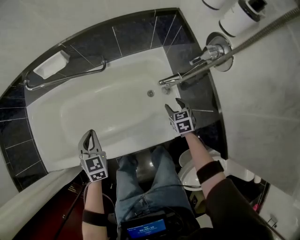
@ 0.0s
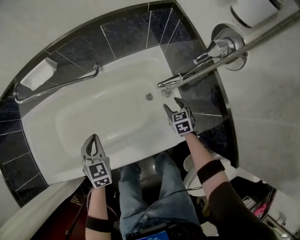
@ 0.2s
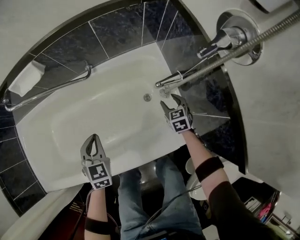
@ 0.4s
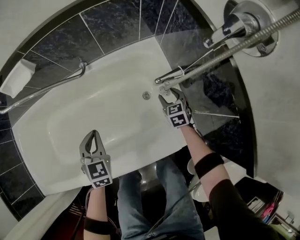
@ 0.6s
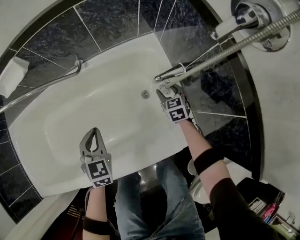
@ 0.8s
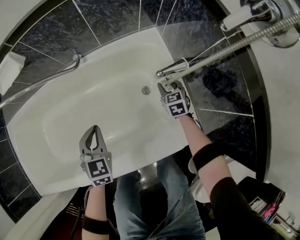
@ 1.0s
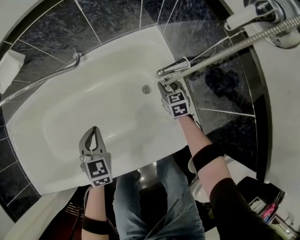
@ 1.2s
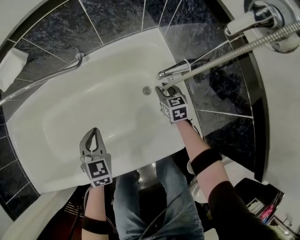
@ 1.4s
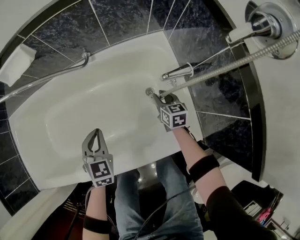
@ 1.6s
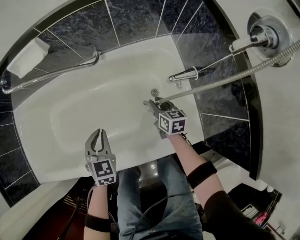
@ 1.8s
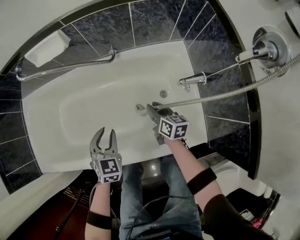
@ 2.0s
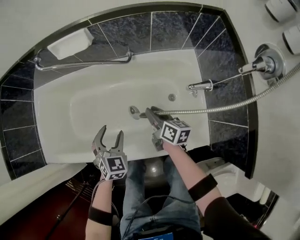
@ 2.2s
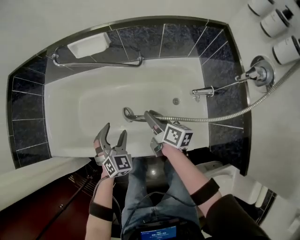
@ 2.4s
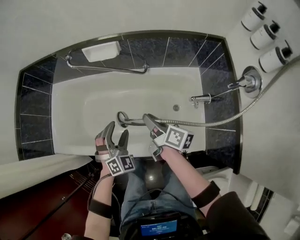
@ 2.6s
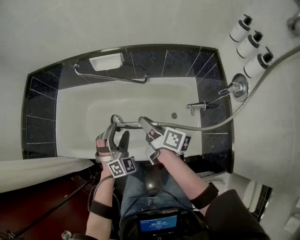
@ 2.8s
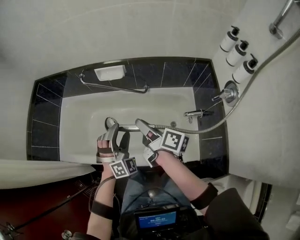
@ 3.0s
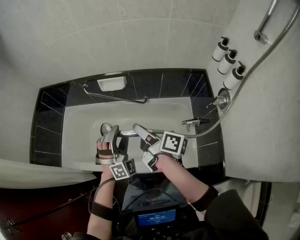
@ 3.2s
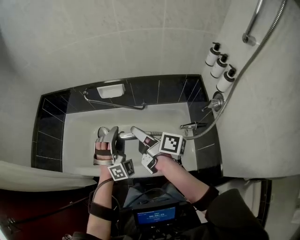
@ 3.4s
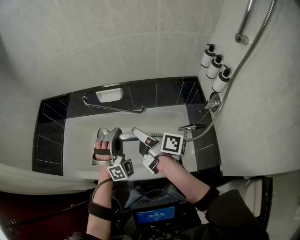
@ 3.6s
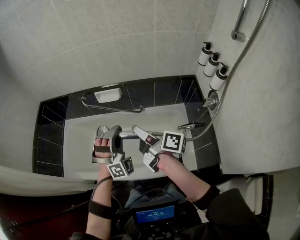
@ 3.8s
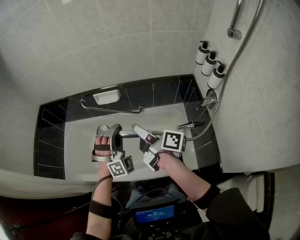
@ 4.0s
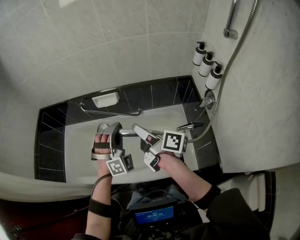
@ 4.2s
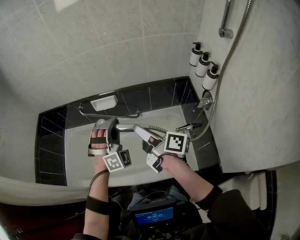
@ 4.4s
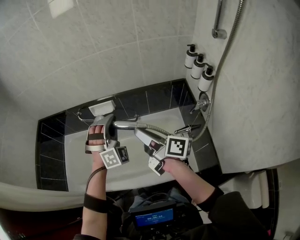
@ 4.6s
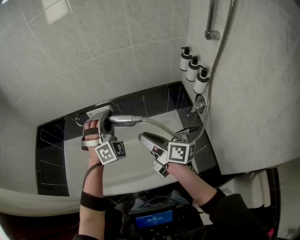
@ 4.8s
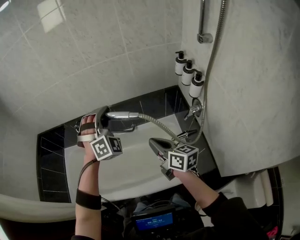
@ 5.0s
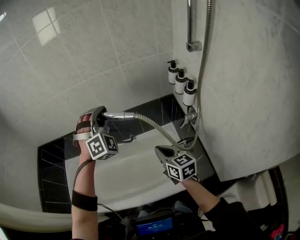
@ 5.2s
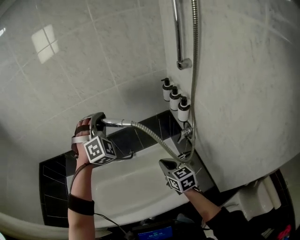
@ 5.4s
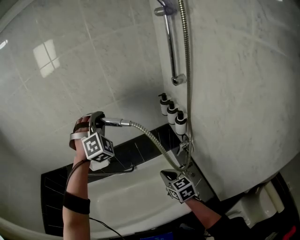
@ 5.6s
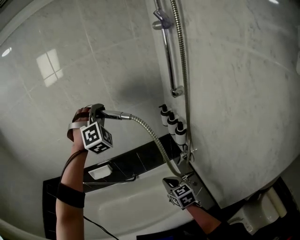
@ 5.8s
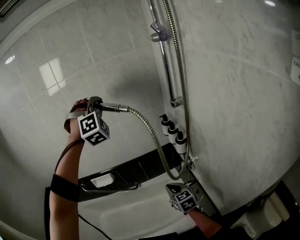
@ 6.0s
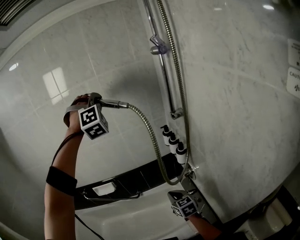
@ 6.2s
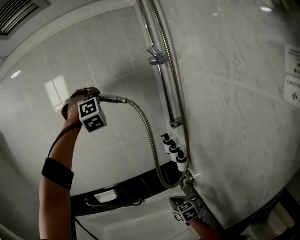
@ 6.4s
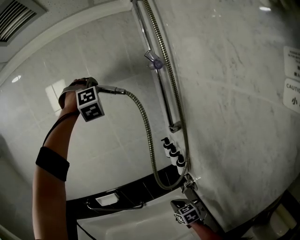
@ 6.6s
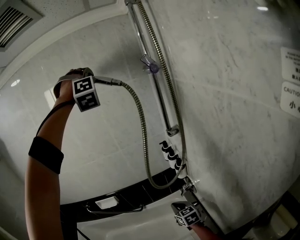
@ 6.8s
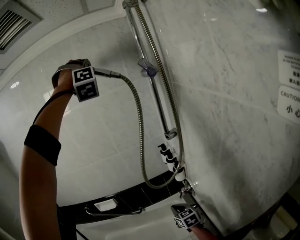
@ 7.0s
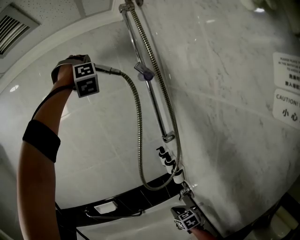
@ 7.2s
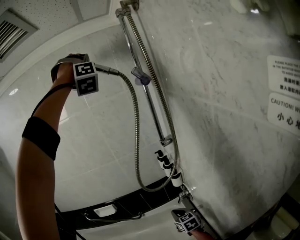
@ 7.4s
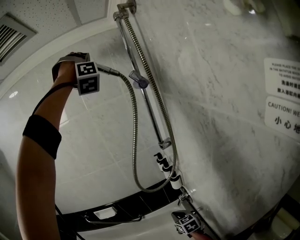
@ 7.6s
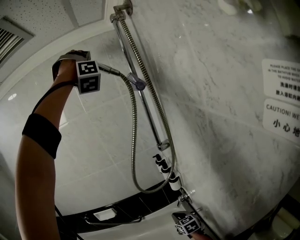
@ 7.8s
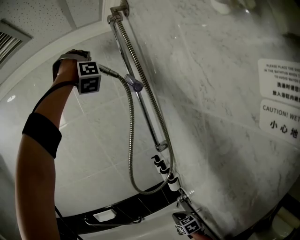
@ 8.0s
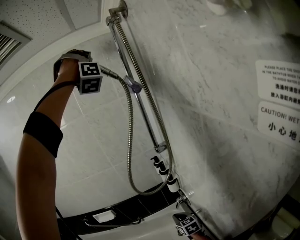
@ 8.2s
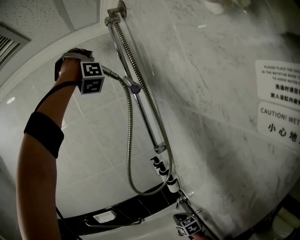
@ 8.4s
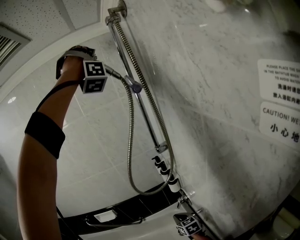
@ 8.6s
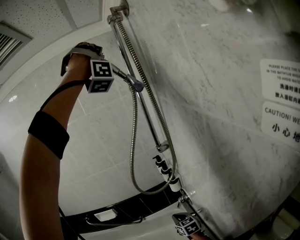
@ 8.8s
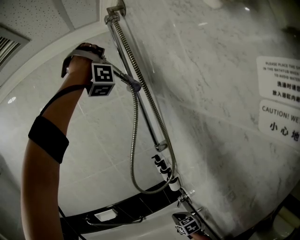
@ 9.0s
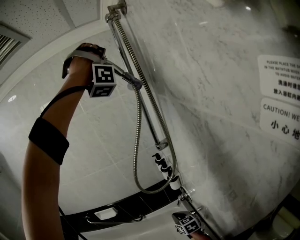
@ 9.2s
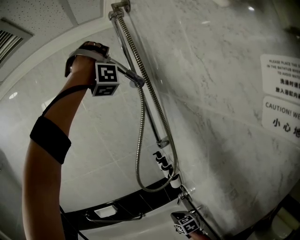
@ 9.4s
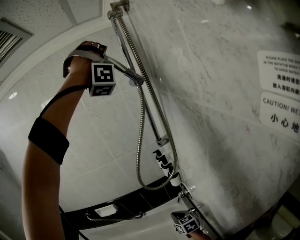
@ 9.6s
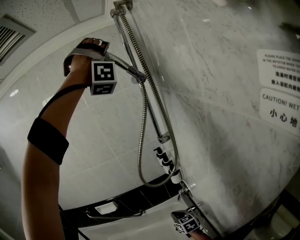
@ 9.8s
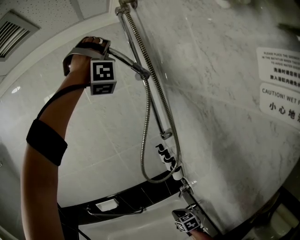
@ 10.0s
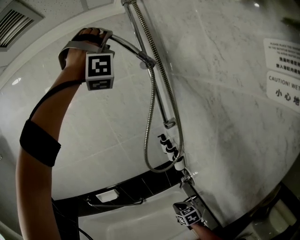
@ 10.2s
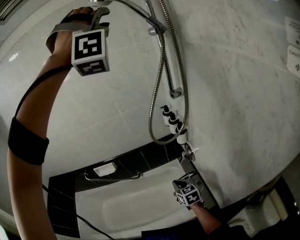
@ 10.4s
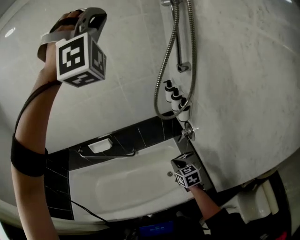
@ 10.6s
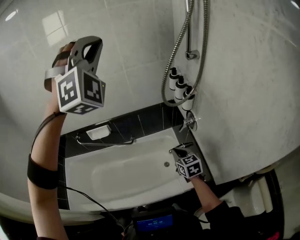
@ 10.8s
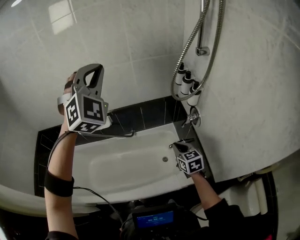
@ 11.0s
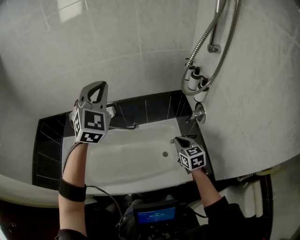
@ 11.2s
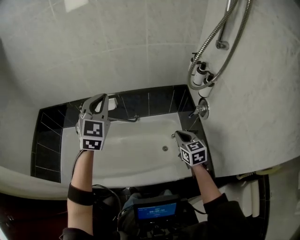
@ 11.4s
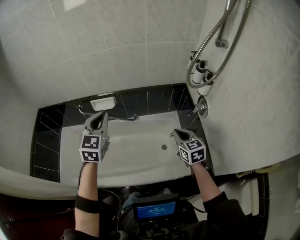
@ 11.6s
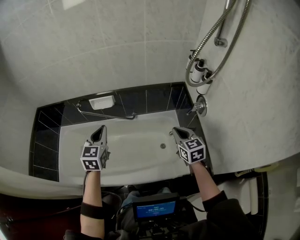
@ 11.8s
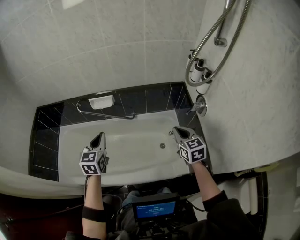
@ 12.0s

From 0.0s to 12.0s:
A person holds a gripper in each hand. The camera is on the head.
From 0.0s to 1.6s: Both grippers travel together downward, about 20 cm. The right gripper changes its angle by roughly 20 degrees, and closes up.
From 1.6s to 3.0s: The left gripper moves upward, roughly 40 cm, rotates around the line of its fingers by roughly 40 degrees, clockwise from behind, and opens its fingers, while the right gripper moves upward and to the left, some 60 cm, and tilts its fingers about 30 degrees upward.
From 3.0s to 4.4s: The right gripper moves upward, roughly 15 cm; the left gripper moves upward and to the right, some 20 cm, and closes its fingers.
From 4.4s to 6.0s: The right gripper heads to the right, covering about 25 cm, twists approximately 60 degrees counterclockwise, seen from behind, and closes its fingers. The left gripper shifts about 50 cm upward, to the right and forward.
From 6.0s to 7.6s: The left gripper shifts some 35 cm upward and to the right, and turns by roughly 30 degrees. The right gripper shifts approximately 5 cm to the right.
From 7.6s to 9.0s: The left gripper heads to the right and backward, covering some 10 cm, and turns by roughly 20 degrees.
From 9.0s to 10.4s: The left gripper moves backward, downward and to the left, some 20 cm, rotates roughly 30 degrees, and opens up. Meanwhile the right gripper moves to the left and backward, roughly 5 cm.
From 10.4s to 12.0s: The right gripper goes approximately 5 cm to the left. Meanwhile the left gripper shifts roughly 80 cm downward and to the left, twists some 120 degrees counterclockwise, seen from behind, and closes up.

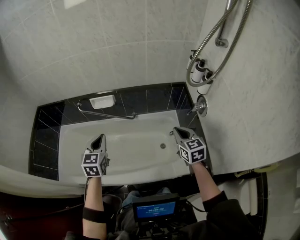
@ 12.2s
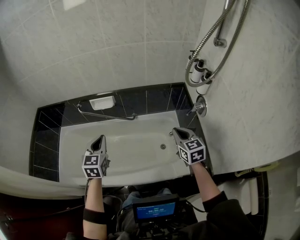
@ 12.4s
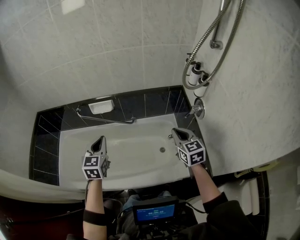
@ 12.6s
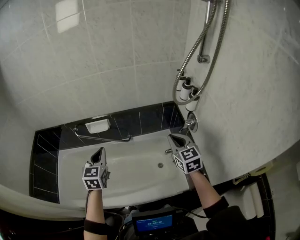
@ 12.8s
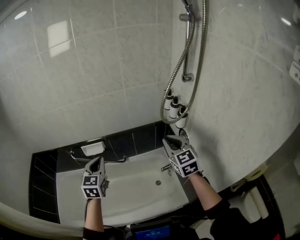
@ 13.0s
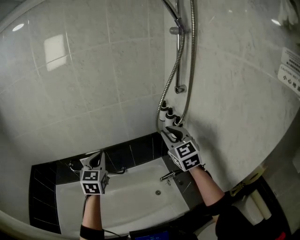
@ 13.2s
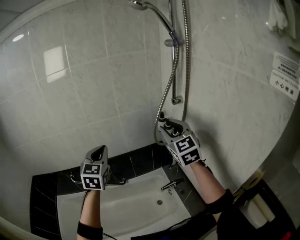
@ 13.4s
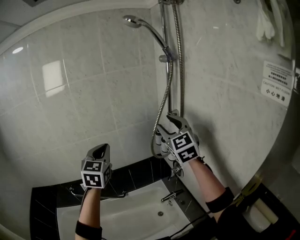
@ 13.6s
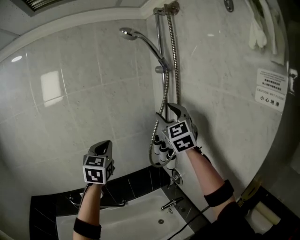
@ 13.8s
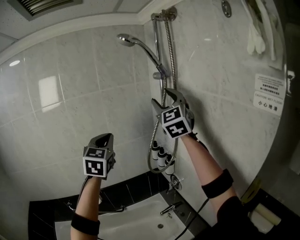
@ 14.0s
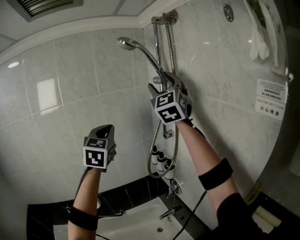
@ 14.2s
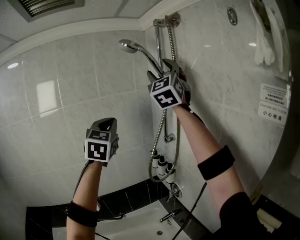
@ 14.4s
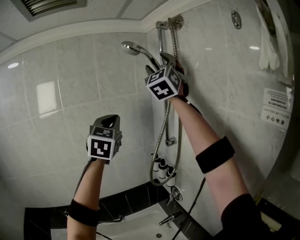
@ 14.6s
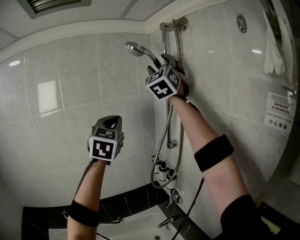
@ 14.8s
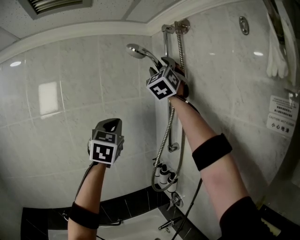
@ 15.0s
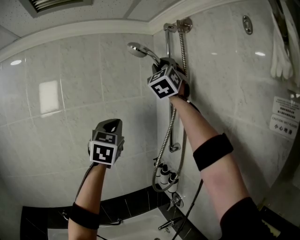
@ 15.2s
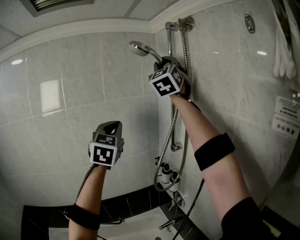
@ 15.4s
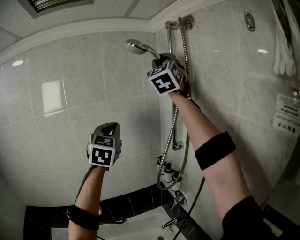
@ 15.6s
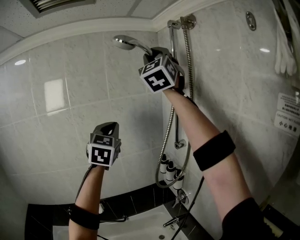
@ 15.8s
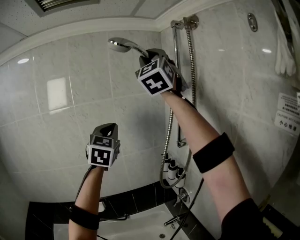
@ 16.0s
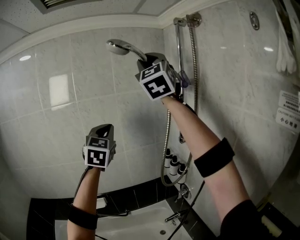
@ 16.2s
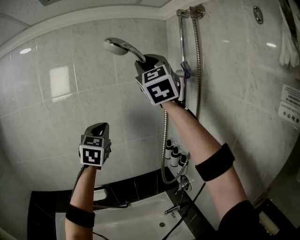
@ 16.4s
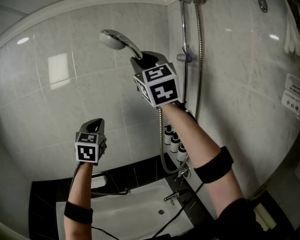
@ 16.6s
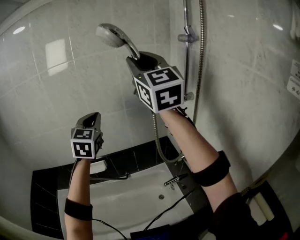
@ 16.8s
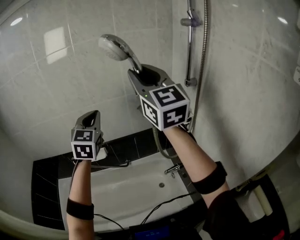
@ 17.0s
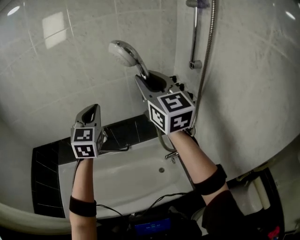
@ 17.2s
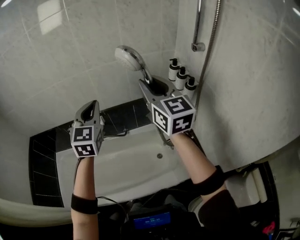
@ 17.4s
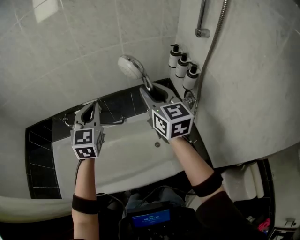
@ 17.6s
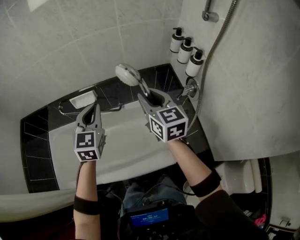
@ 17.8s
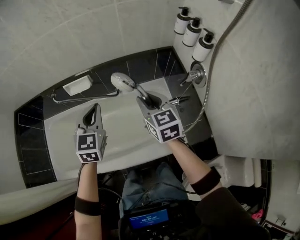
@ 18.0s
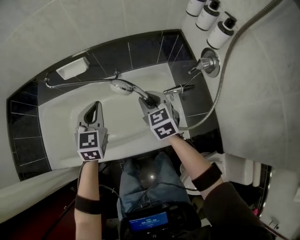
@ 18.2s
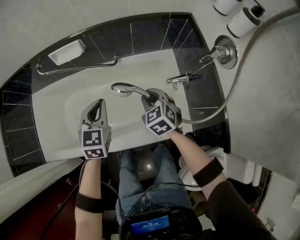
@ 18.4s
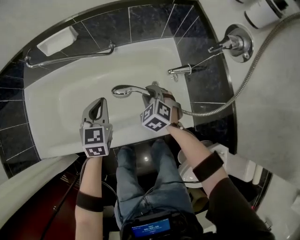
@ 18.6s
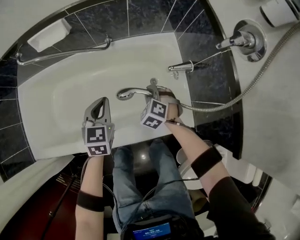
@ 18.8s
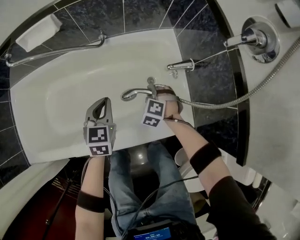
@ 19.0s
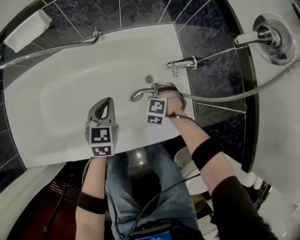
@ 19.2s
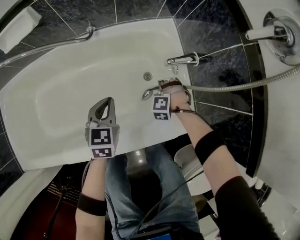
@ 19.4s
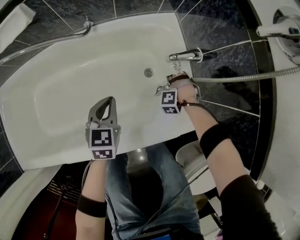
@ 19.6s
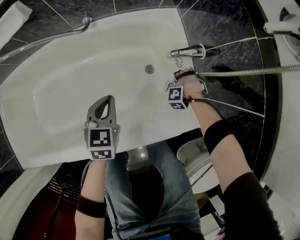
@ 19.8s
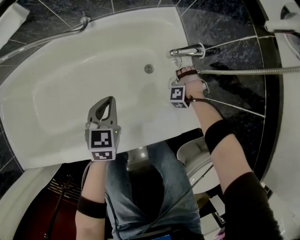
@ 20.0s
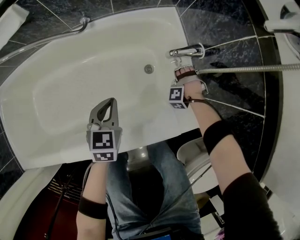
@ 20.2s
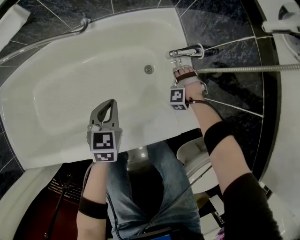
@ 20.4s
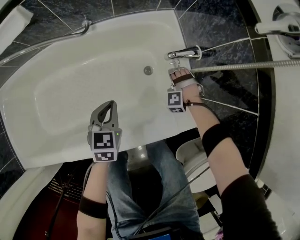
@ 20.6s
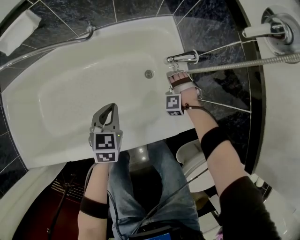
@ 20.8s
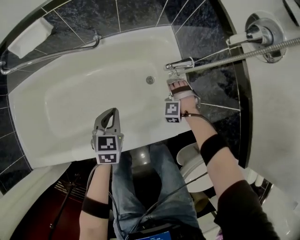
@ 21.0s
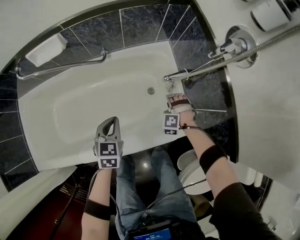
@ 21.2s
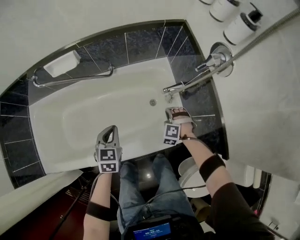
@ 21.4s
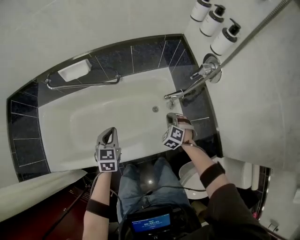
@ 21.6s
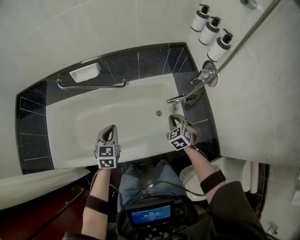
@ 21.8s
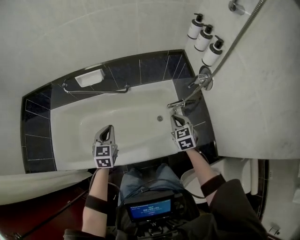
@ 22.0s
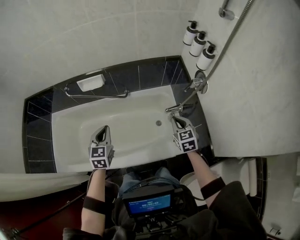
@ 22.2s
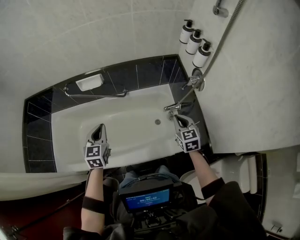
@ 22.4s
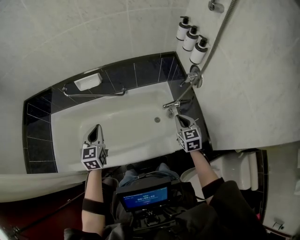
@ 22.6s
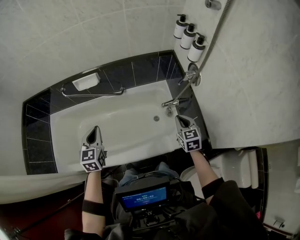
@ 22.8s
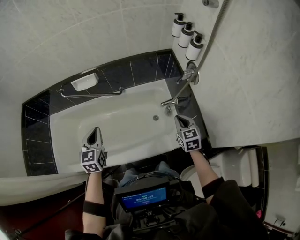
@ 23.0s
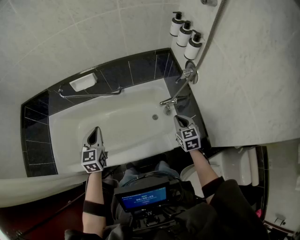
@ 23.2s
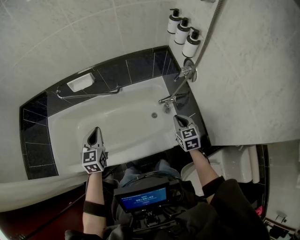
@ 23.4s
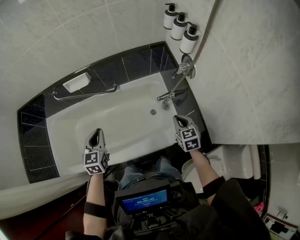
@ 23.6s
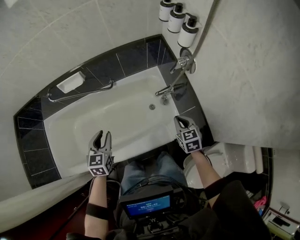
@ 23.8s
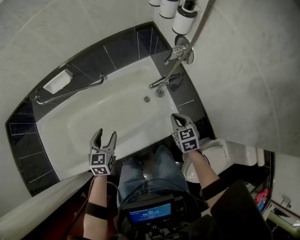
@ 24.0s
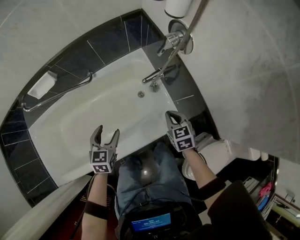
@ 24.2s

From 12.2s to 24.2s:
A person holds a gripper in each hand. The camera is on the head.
From 12.2s to 13.8s: The right gripper moves upward, about 50 cm, angles its fingers upward, by about 40 degrees, and opens, while the left gripper moves upward, to the right and forward, roughly 50 cm, and rotates roughly 30 degrees.
From 13.8s to 15.2s: The right gripper shifts roughly 30 cm upward and forward, and turns by approximately 30 degrees. The left gripper travels upward and forward by some 20 cm.
From 15.2s to 16.6s: The left gripper is displaced to the left and downward by roughly 20 cm. The right gripper shifts some 20 cm to the left, backward and downward, and swivels about 40 degrees.
From 16.6s to 18.2s: The left gripper moves downward, roughly 50 cm, and rotates roughly 30 degrees. The right gripper is displaced downward by some 80 cm, and angles its fingers downward, by approximately 60 degrees.
From 18.2s to 19.8s: The two grippers go some 50 cm downward. The right gripper swivels some 100 degrees.
From 19.8s to 21.2s: The right gripper shifts about 20 cm upward and backward, turns by about 30 degrees, and opens, then closes again, while the left gripper shifts roughly 15 cm upward.
From 21.2s to 22.6s: Both grippers travel together upward, approximately 35 cm. The left gripper rotates roughly 20 degrees. Meanwhile the right gripper twists about 80 degrees clockwise, seen from behind, and closes.
From 22.6s to 24.2s: The left gripper shifts about 30 cm downward and to the right, turns by roughly 30 degrees, and opens. Meanwhile the right gripper moves downward, approximately 20 cm.
